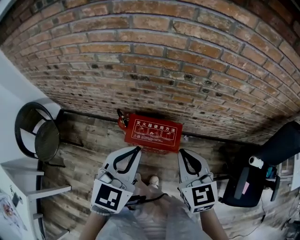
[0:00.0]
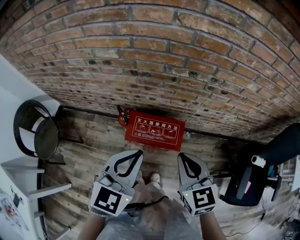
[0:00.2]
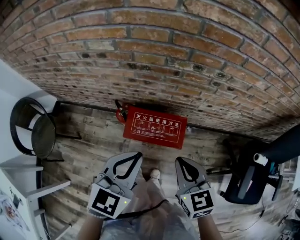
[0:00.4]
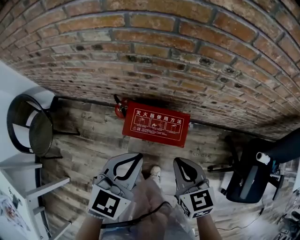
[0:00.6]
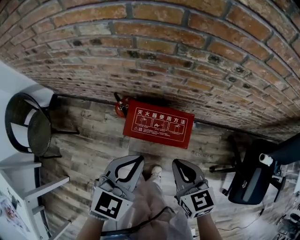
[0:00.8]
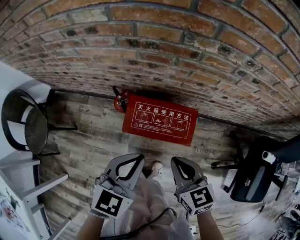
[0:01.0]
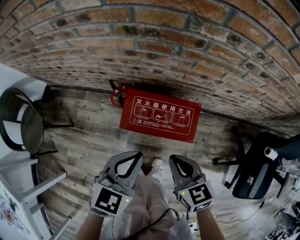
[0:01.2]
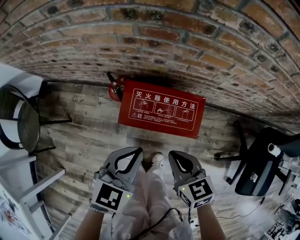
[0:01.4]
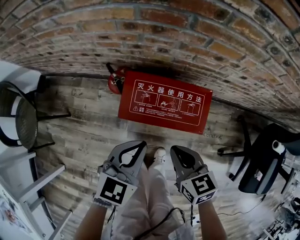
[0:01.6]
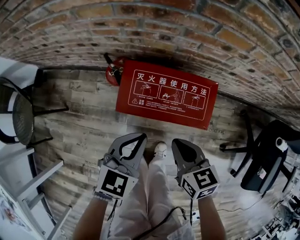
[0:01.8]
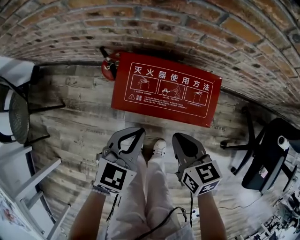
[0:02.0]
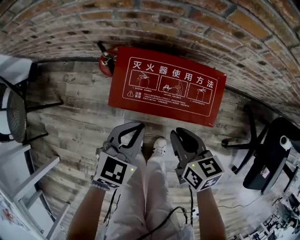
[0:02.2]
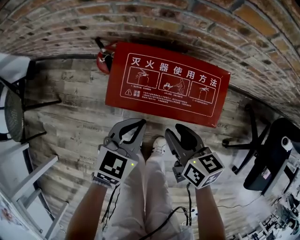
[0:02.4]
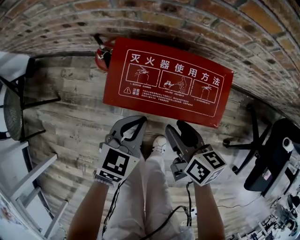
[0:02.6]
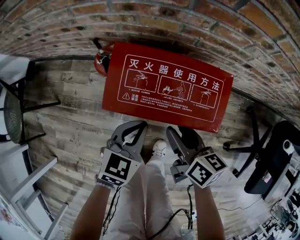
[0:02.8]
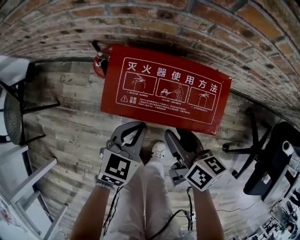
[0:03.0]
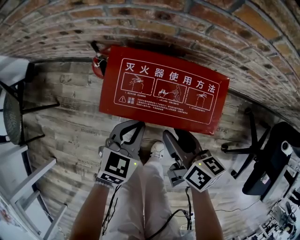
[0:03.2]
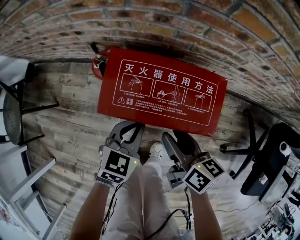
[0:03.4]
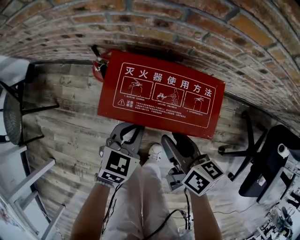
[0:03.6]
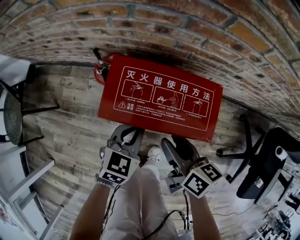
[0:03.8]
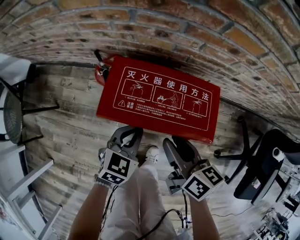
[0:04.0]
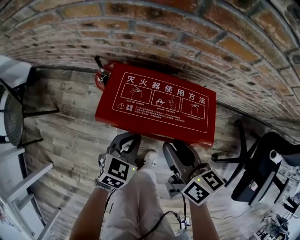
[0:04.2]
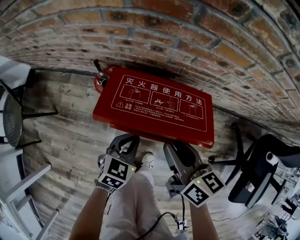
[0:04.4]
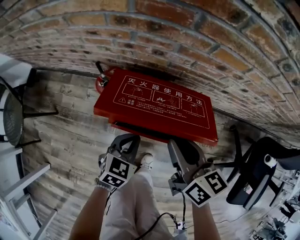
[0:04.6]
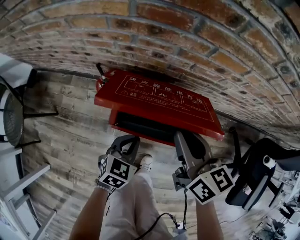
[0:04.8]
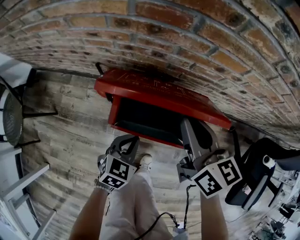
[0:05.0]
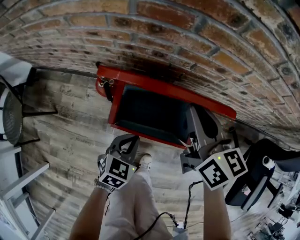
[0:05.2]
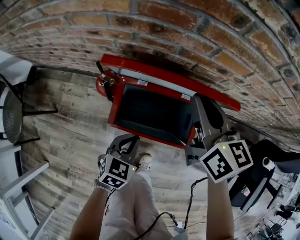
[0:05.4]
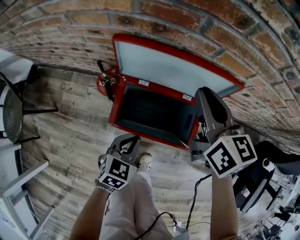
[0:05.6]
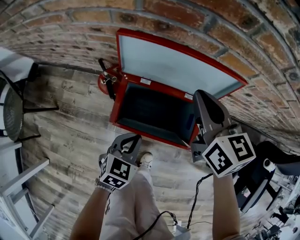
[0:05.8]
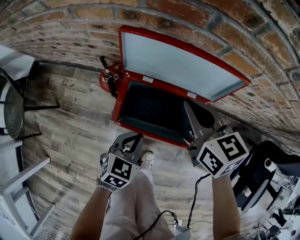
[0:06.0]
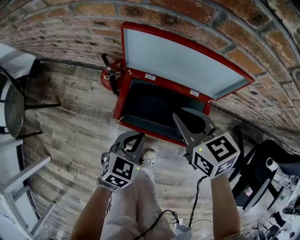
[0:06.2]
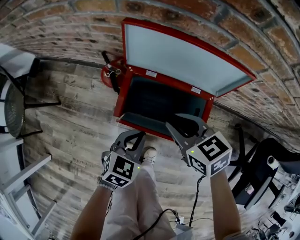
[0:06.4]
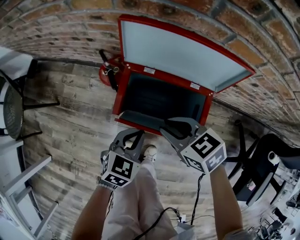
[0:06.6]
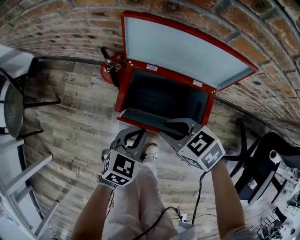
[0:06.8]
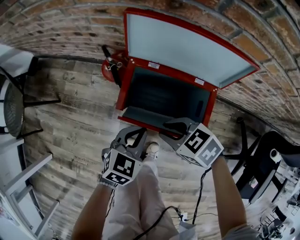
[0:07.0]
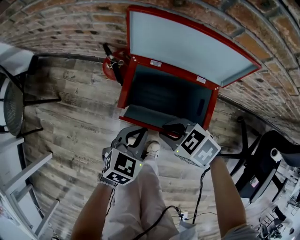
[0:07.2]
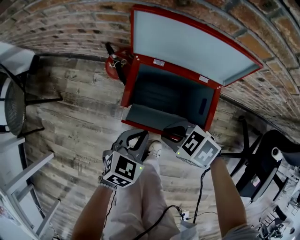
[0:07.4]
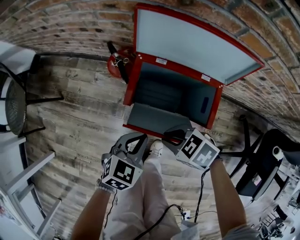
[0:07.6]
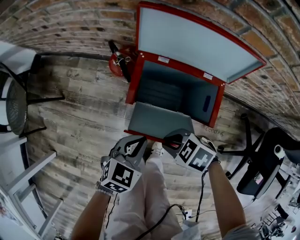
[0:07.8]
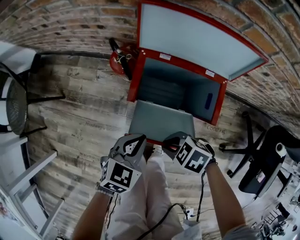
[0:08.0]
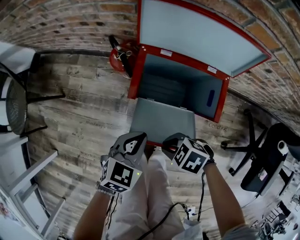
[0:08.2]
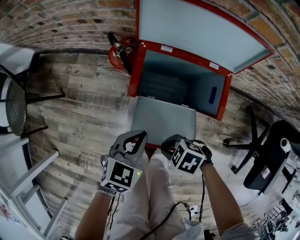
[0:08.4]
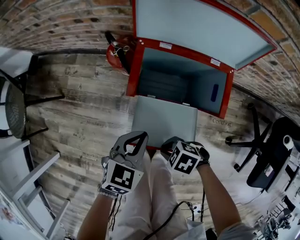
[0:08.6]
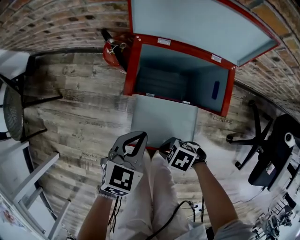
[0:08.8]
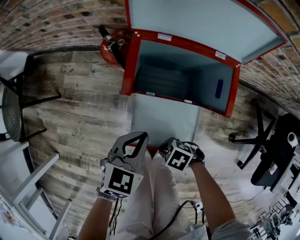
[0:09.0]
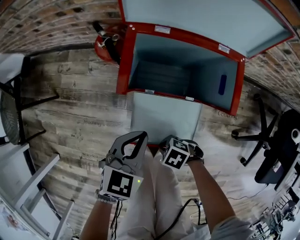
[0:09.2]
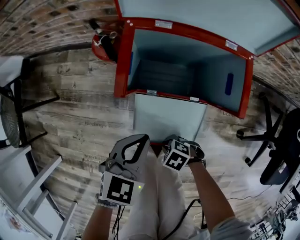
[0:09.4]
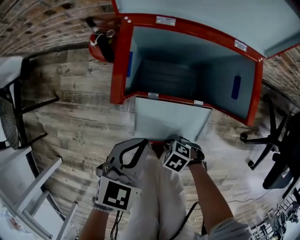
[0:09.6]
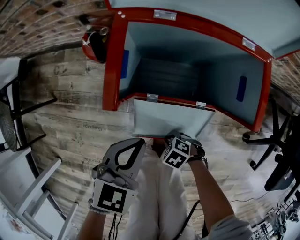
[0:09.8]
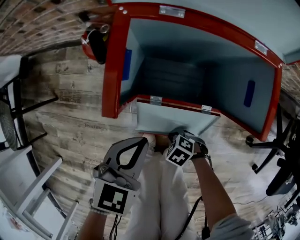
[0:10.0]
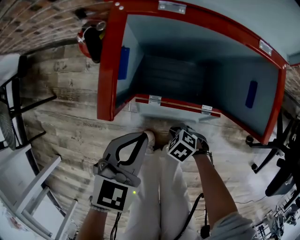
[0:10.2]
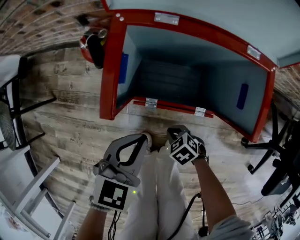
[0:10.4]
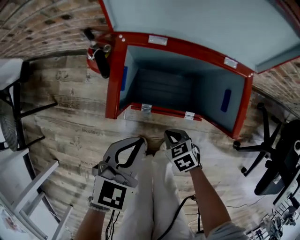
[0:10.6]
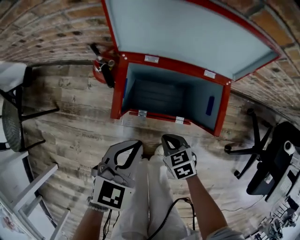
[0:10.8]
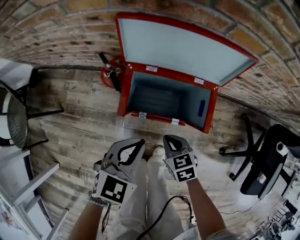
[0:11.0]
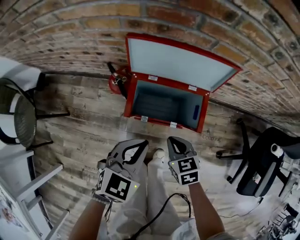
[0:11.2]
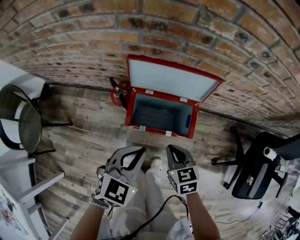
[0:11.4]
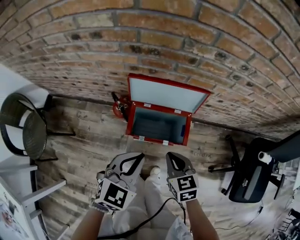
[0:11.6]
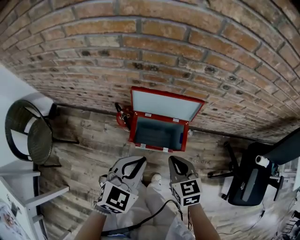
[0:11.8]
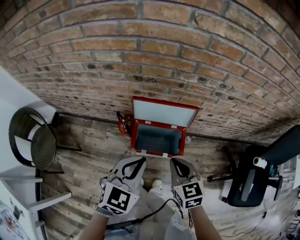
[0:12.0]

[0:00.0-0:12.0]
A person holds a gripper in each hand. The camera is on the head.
0:00.0 to 0:01.6: Both grippers move downward, some 35 cm. The right gripper changes its angle by about 30 degrees. Meanwhile the left gripper rotates approximately 20 degrees.
0:01.6 to 0:03.0: The right gripper travels downward by approximately 10 cm, turns by roughly 30 degrees, and opens, while the left gripper travels downward by approximately 20 cm.
0:03.0 to 0:04.4: The right gripper is displaced upward by roughly 10 cm.
0:04.4 to 0:06.0: The right gripper moves forward, some 10 cm, swivels roughly 30 degrees, and closes.
0:06.0 to 0:07.6: The right gripper shifts by approximately 25 cm, and changes its angle by approximately 50 degrees, while the left gripper changes place by some 5 cm.
0:07.6 to 0:09.0: The right gripper shifts roughly 15 cm downward.
0:09.0 to 0:10.4: The left gripper is displaced downward by some 5 cm; the right gripper goes about 15 cm downward, and changes its angle by approximately 20 degrees.
0:10.4 to 0:12.0: The two grippers go approximately 50 cm upward. The right gripper points its fingers approximately 30 degrees further upward.

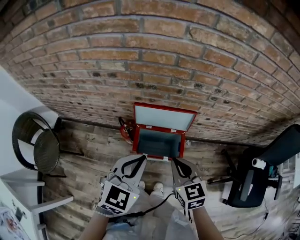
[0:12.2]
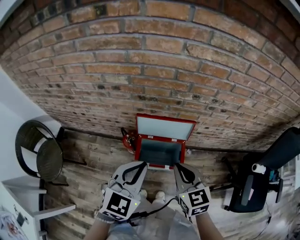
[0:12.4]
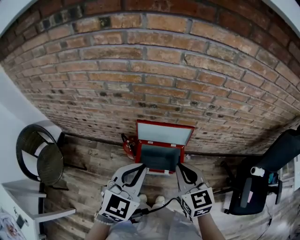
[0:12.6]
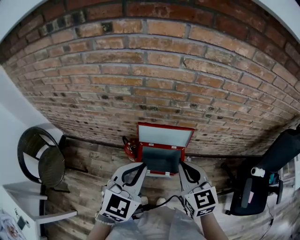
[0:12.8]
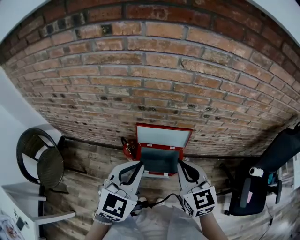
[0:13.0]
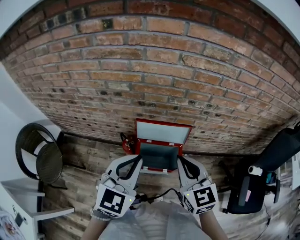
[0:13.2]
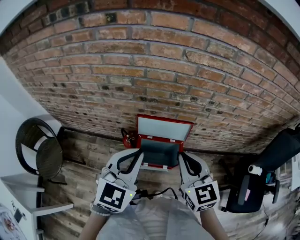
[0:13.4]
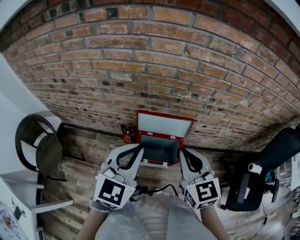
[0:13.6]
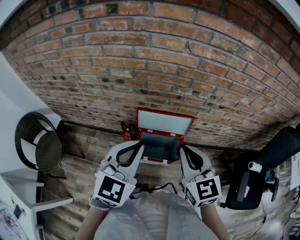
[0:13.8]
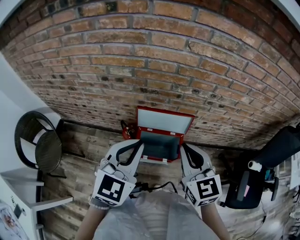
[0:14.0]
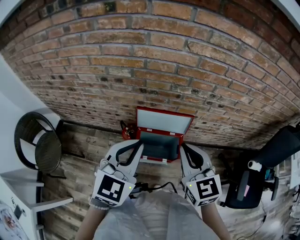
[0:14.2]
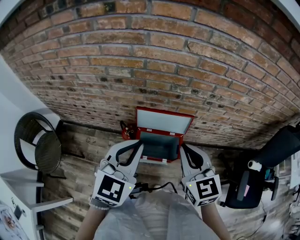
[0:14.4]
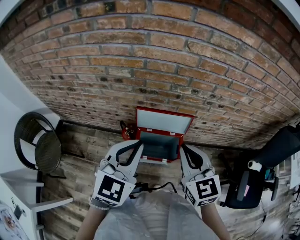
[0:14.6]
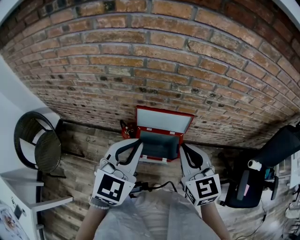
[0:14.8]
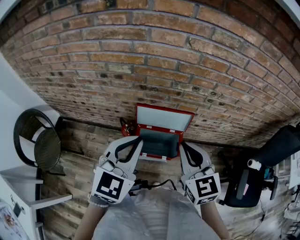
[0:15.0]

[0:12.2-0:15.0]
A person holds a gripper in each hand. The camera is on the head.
0:12.2 to 0:13.6: The grippers both shift upward by about 10 cm.
0:13.6 to 0:15.0: The two grippers keep their place.

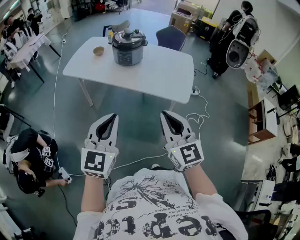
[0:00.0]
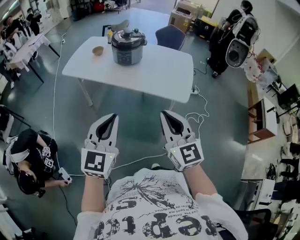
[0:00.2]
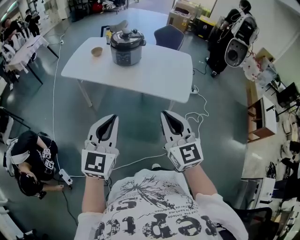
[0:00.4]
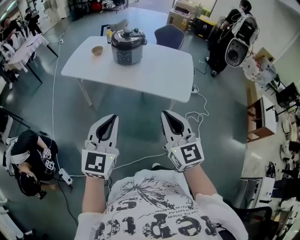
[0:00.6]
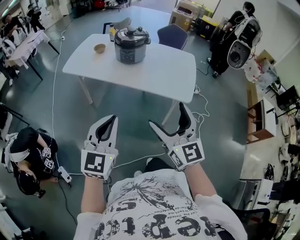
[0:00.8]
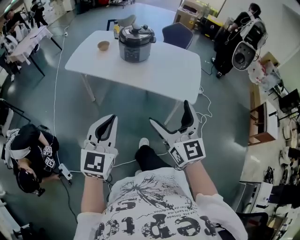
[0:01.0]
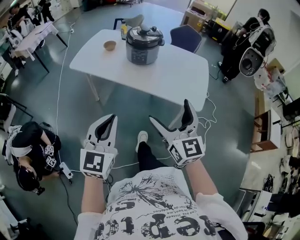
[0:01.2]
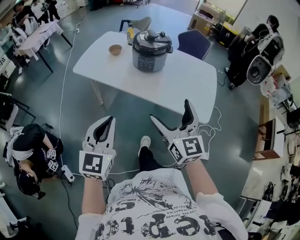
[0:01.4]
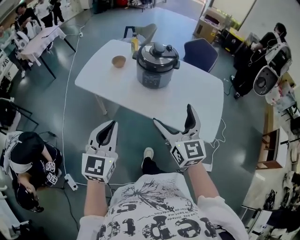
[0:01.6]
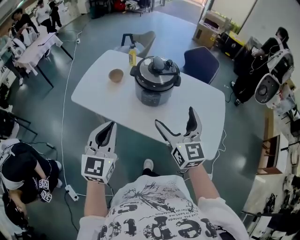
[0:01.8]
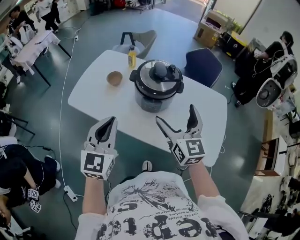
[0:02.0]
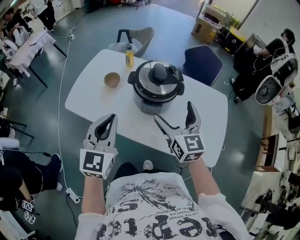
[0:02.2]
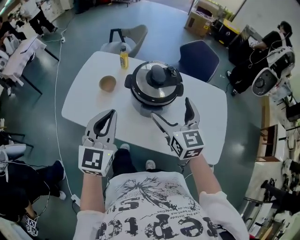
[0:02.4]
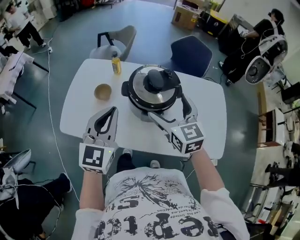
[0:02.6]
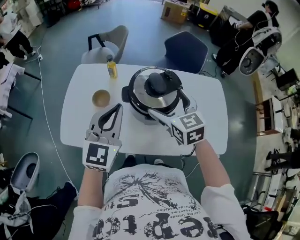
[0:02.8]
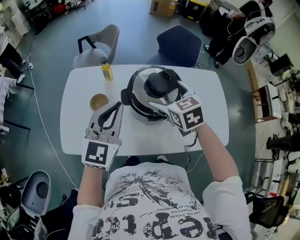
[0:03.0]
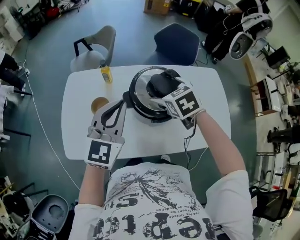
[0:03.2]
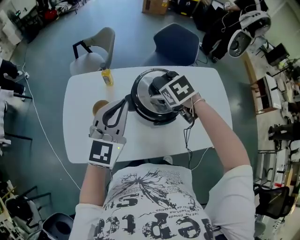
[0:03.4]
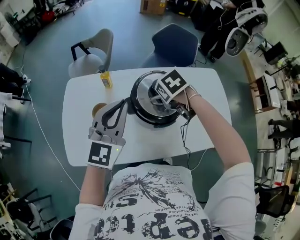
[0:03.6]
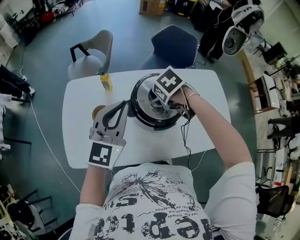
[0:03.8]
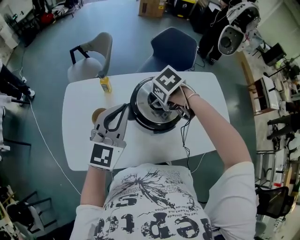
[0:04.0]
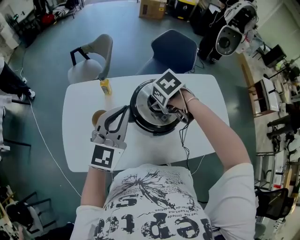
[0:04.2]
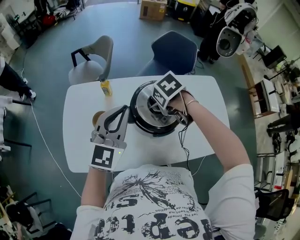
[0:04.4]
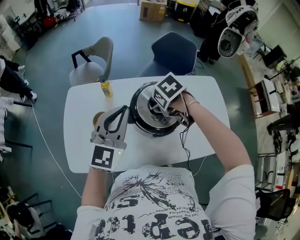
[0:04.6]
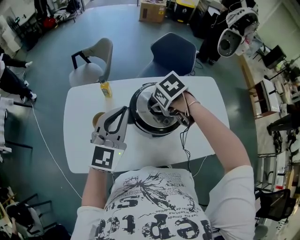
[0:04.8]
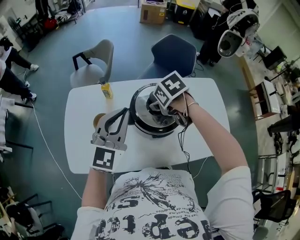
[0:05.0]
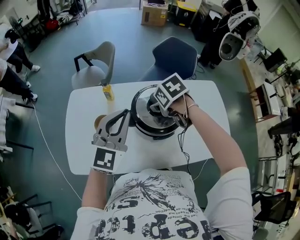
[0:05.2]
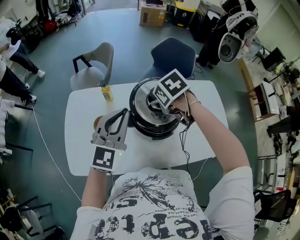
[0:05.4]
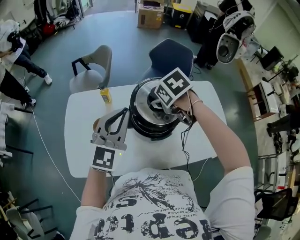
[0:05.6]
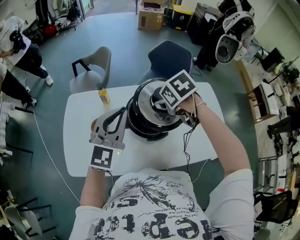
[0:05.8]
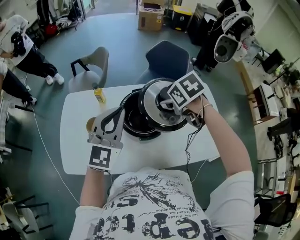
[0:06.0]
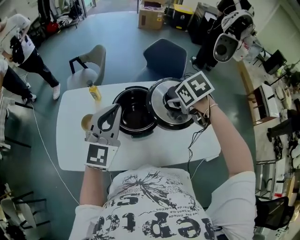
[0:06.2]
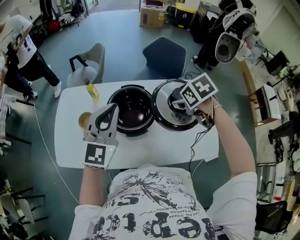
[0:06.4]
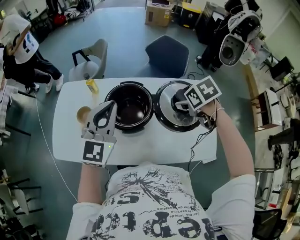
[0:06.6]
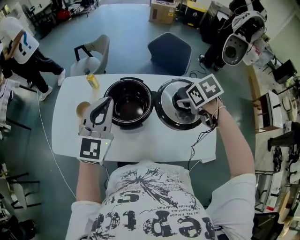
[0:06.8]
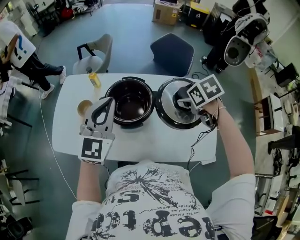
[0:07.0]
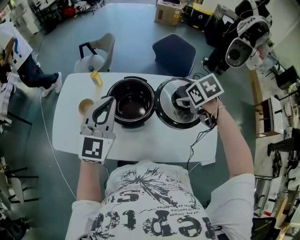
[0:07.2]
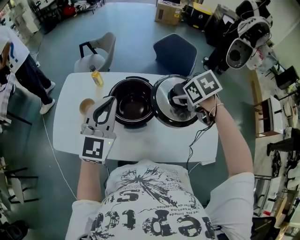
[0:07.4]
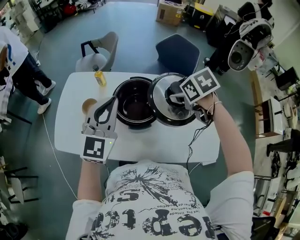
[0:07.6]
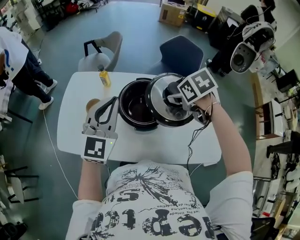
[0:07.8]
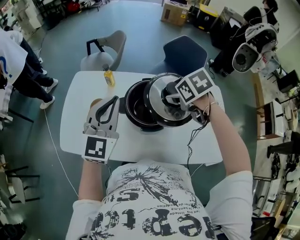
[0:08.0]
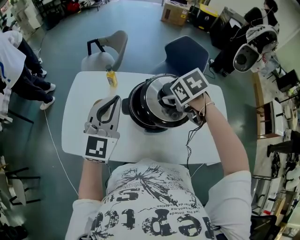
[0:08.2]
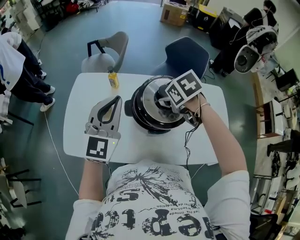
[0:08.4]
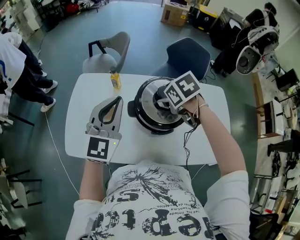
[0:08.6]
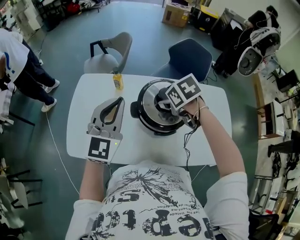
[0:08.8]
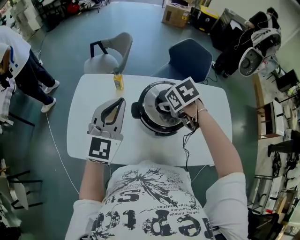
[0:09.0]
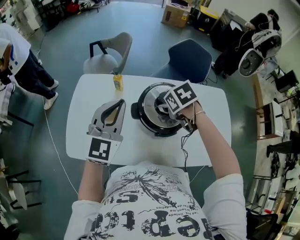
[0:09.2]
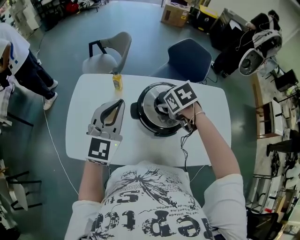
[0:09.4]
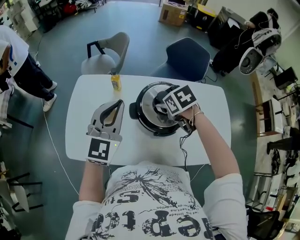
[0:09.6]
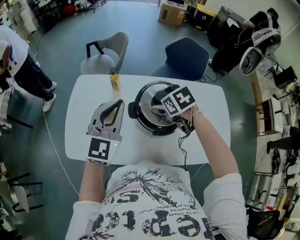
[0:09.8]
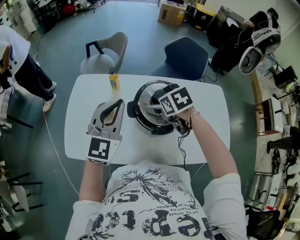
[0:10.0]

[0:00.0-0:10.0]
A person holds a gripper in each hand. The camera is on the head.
0:00.0 to 0:01.4: The right gripper heads forward, covering approximately 20 cm, and opens. Meanwhile the left gripper is displaced forward and to the left by approximately 20 cm.
0:01.4 to 0:02.8: The two grippers travel together, forward, approximately 60 cm. The left gripper changes its angle by roughly 20 degrees. Meanwhile the right gripper changes its angle by about 30 degrees.
0:02.8 to 0:04.2: The left gripper shifts by about 10 cm. Meanwhile the right gripper changes place by roughly 10 cm, angles its fingers downward, by some 50 degrees, and closes up.
0:04.2 to 0:05.8: The right gripper goes some 5 cm upward. Meanwhile the left gripper changes place by about 5 cm.
0:05.8 to 0:07.2: The left gripper travels to the right by some 10 cm, while the right gripper moves to the right, approximately 20 cm.
0:07.2 to 0:08.6: The right gripper shifts some 25 cm to the left, while the left gripper goes about 15 cm to the left and forward.
0:08.6 to 0:10.0: The right gripper opens.
